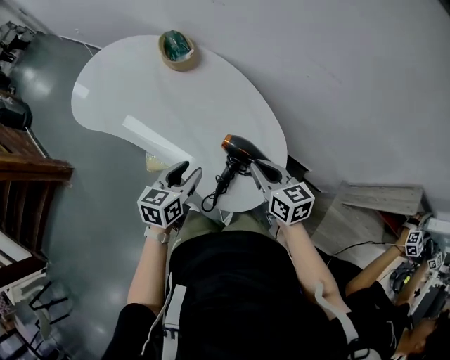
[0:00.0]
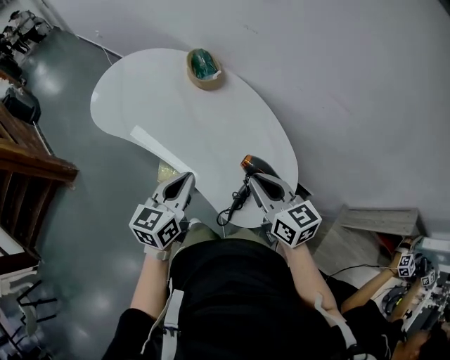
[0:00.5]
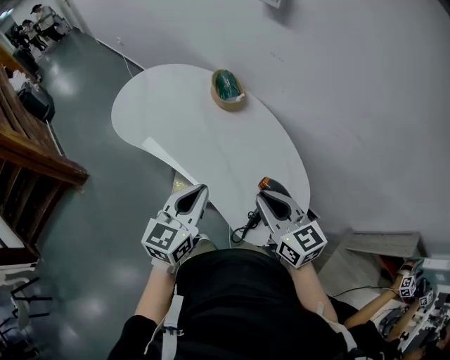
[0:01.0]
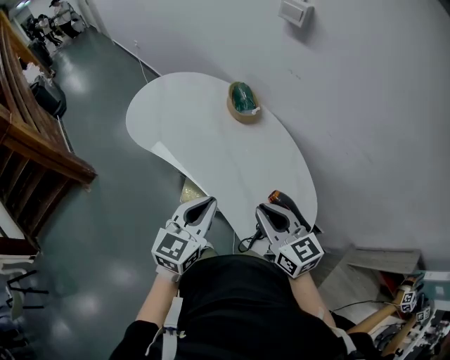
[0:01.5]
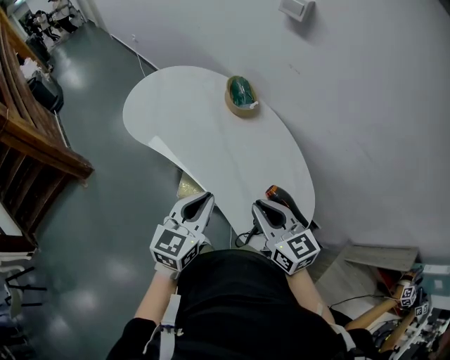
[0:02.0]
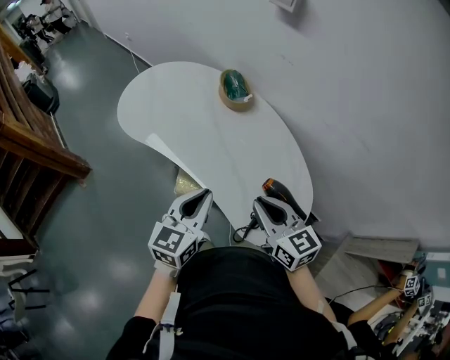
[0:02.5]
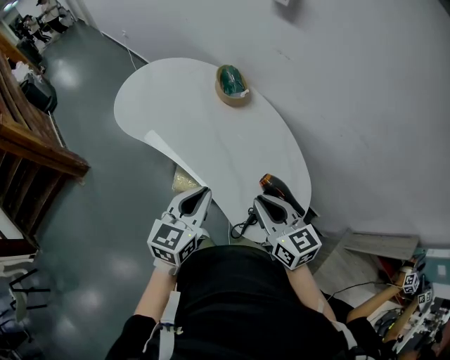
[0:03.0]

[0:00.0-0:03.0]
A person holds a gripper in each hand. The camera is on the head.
0:00.0 to 0:01.5: The right gripper travels to the left and upward by some 25 cm, and rotates approximately 20 degrees. Meanwhile the left gripper is displaced upward and to the left by roughly 20 cm, rotates some 20 degrees, and closes.
0:01.5 to 0:03.0: There are only small adjustments of the grippers.

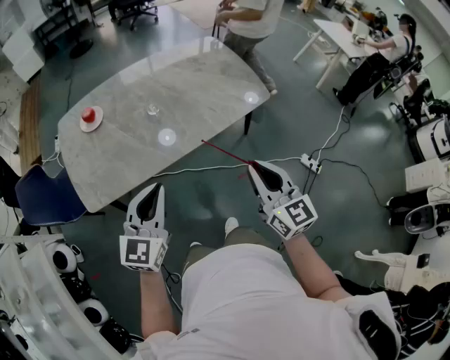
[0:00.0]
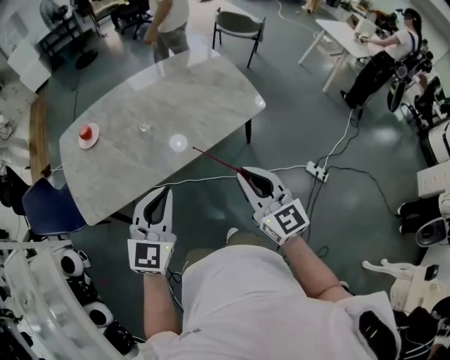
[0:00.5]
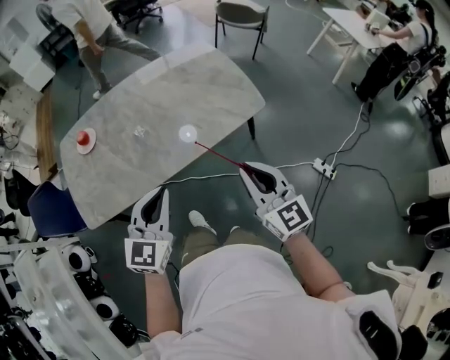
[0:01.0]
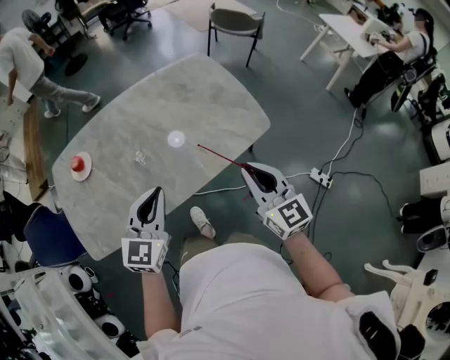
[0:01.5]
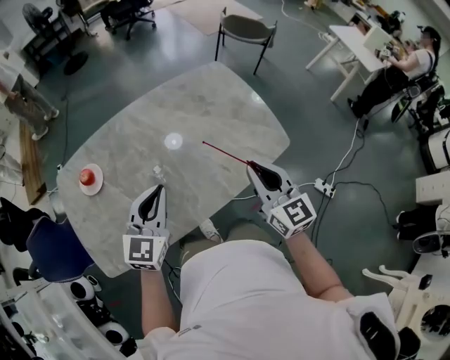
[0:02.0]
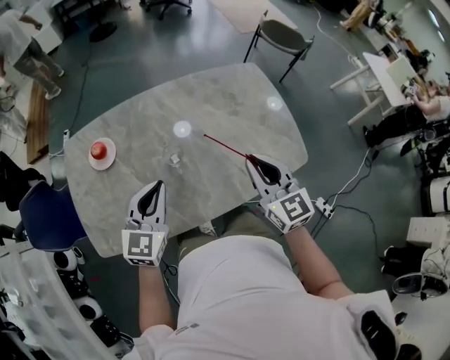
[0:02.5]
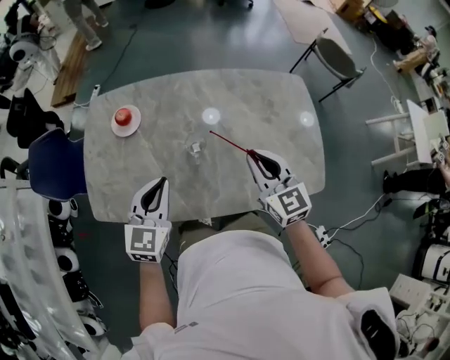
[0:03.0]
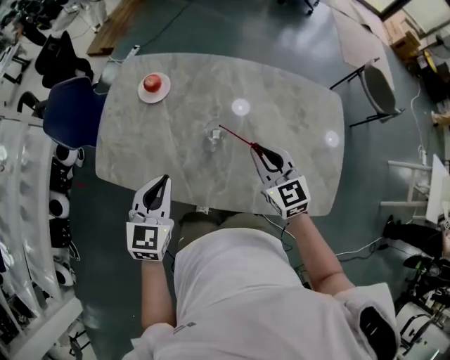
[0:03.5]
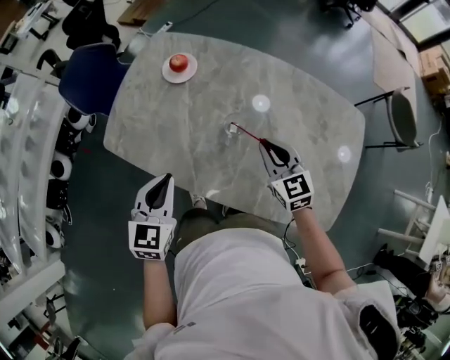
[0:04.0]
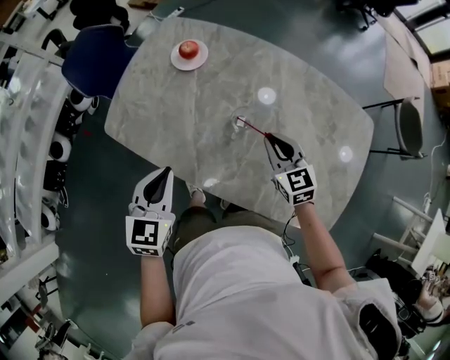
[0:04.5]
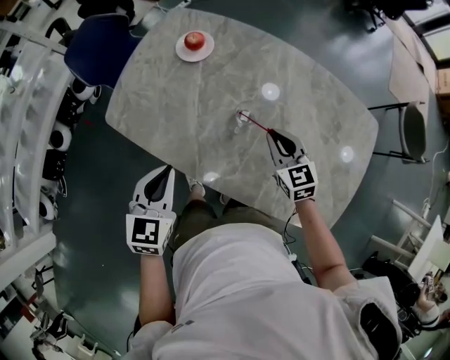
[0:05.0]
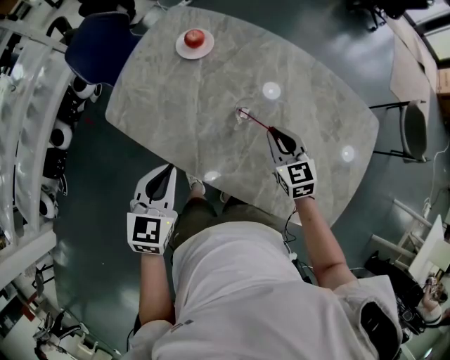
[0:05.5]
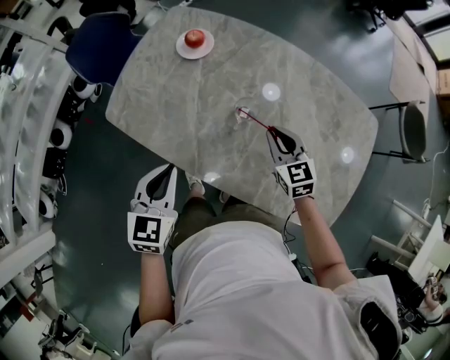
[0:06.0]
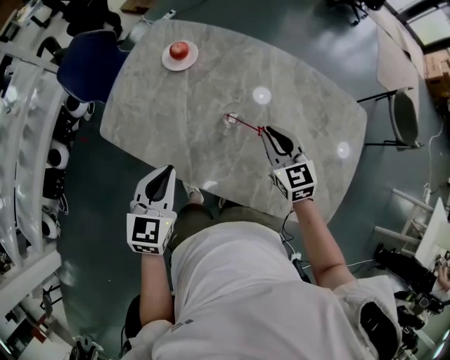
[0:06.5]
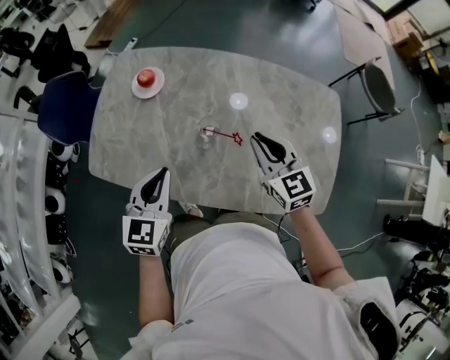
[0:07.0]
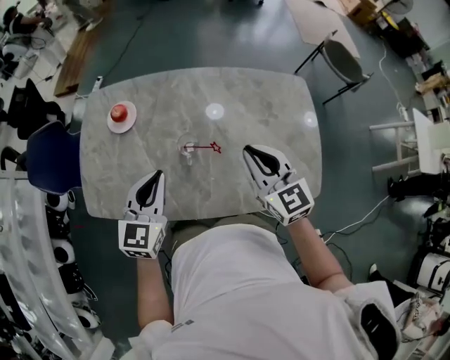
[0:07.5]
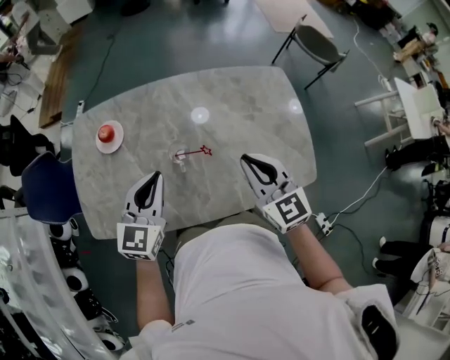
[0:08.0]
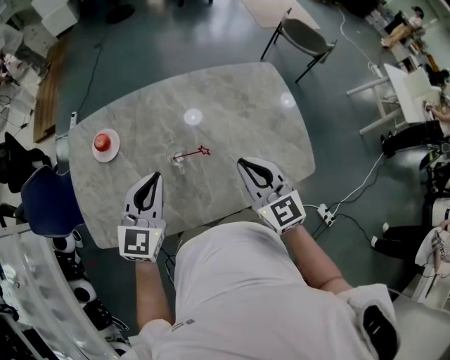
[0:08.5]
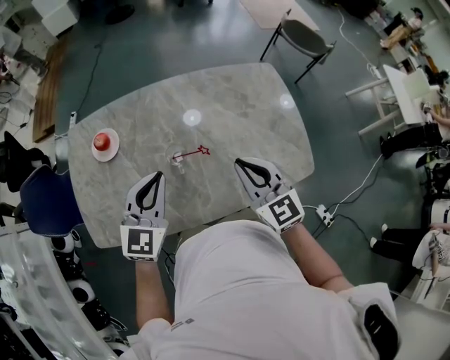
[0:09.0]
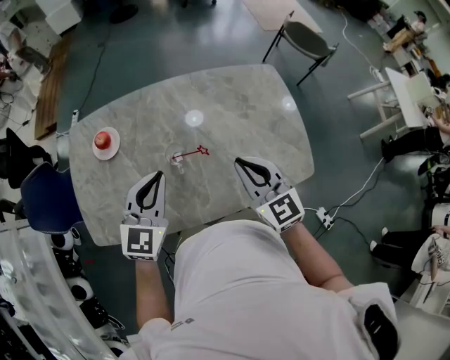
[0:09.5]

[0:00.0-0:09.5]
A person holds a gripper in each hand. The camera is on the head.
0:00.0 to 0:02.0: Both grippers move forward, approximately 30 cm.
0:02.0 to 0:04.0: The right gripper ends up approximately 25 cm from where it was, and changes its angle by about 60 degrees. The left gripper shifts by roughly 15 cm, and rotates roughly 60 degrees.
0:04.0 to 0:05.5: The right gripper moves downward, about 5 cm.
0:05.5 to 0:07.5: The left gripper changes place by approximately 15 cm, and turns by some 30 degrees; the right gripper travels upward by roughly 15 cm, and changes its angle by approximately 30 degrees.
0:07.5 to 0:09.5: There are only small adjustments of the grippers.

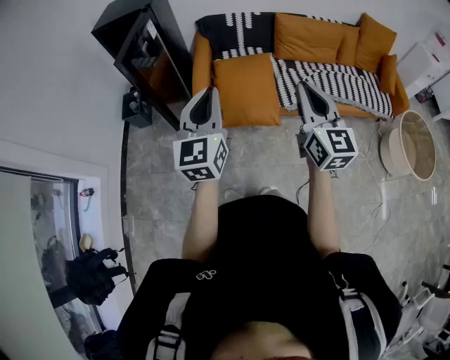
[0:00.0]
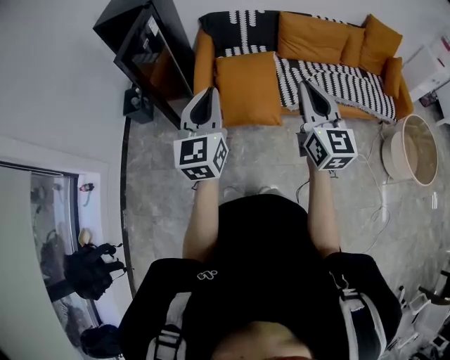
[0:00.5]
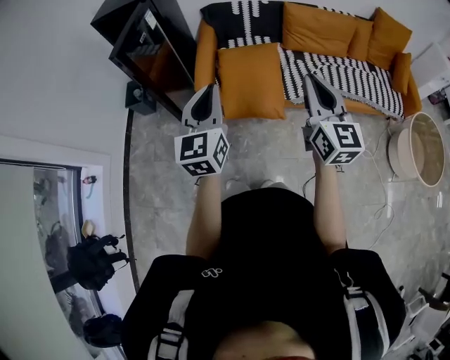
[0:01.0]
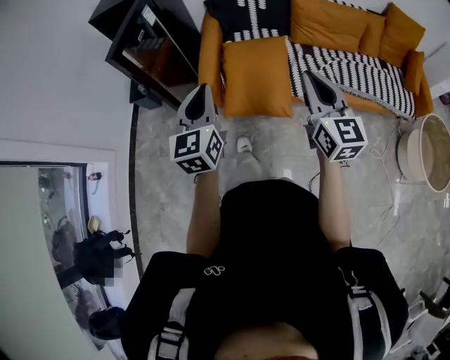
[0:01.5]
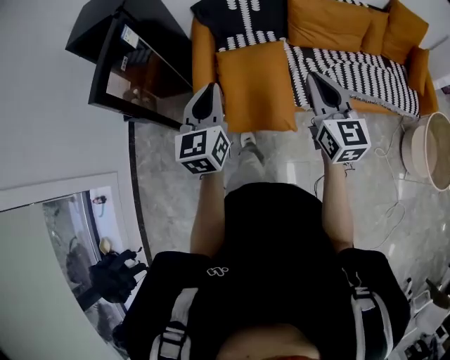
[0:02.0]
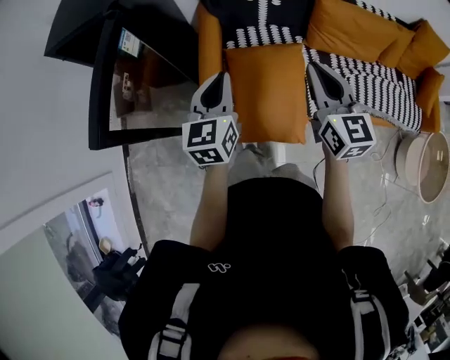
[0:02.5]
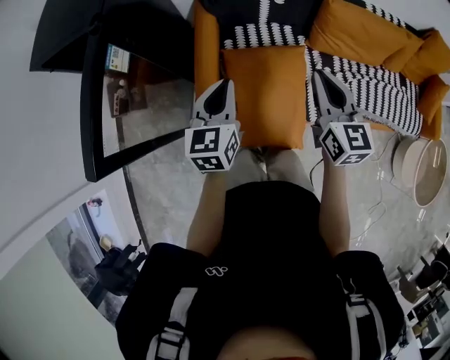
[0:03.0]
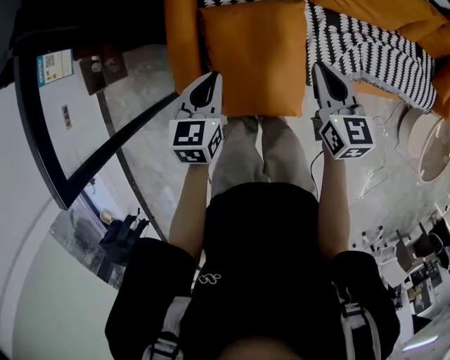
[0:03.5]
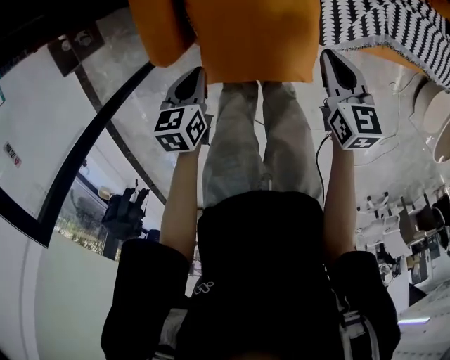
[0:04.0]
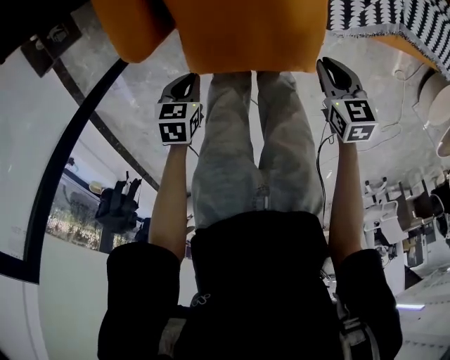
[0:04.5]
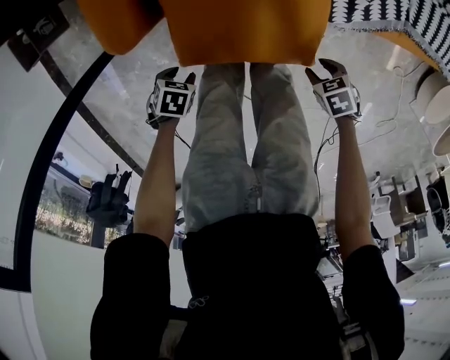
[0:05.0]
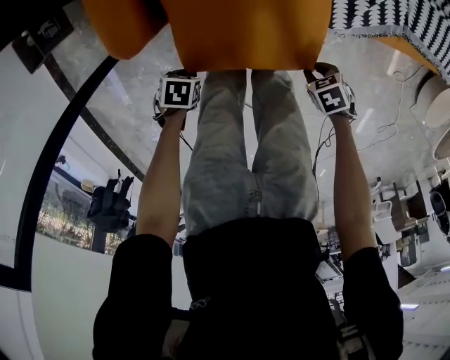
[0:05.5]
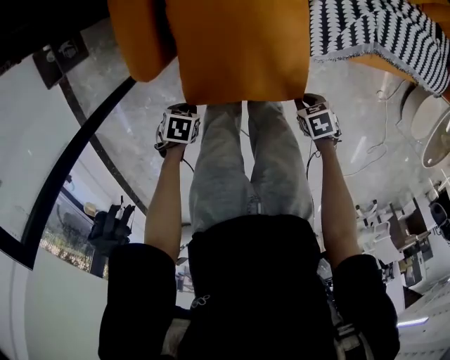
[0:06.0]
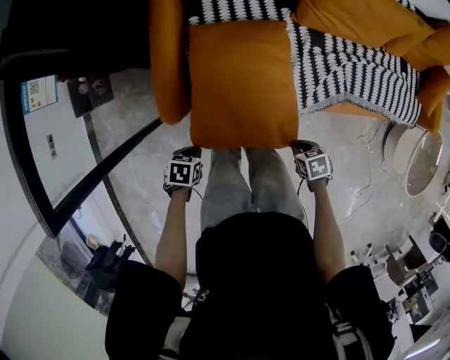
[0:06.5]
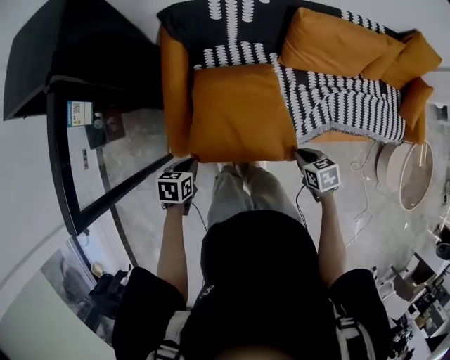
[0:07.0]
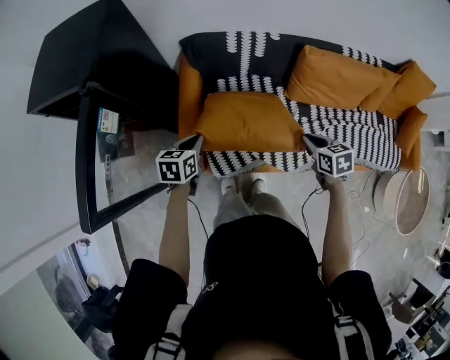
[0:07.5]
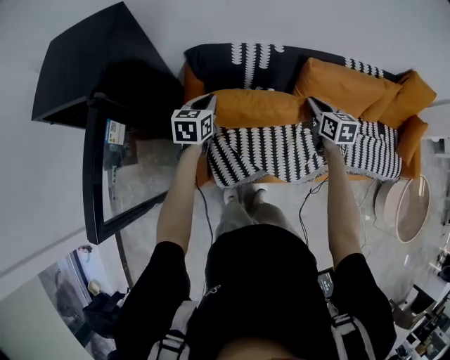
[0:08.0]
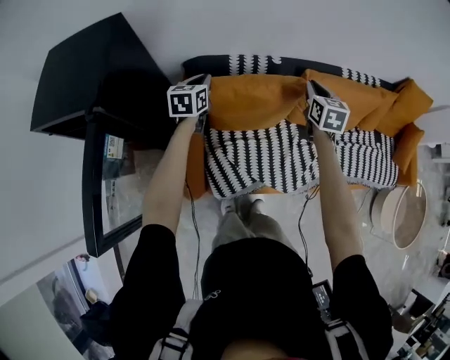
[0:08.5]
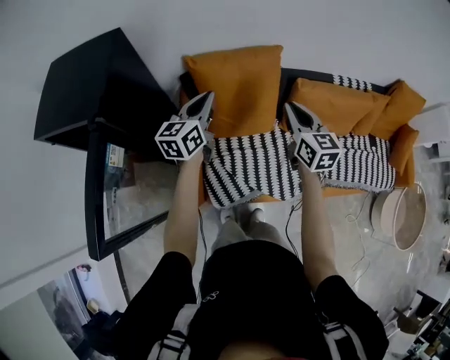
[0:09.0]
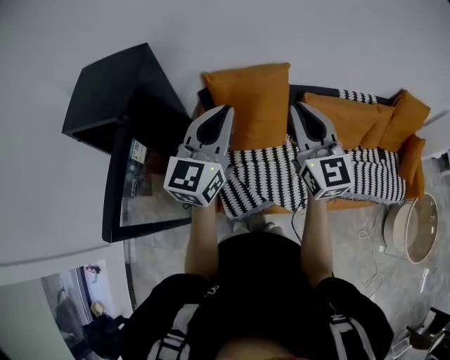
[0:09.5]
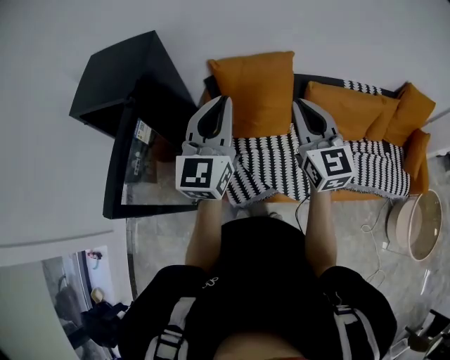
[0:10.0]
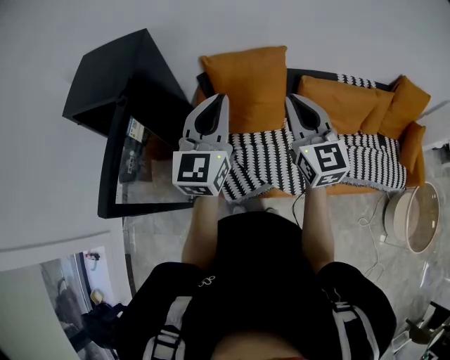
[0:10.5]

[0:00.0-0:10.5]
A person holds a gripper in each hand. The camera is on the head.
0:00.0 to 0:02.0: Both grippers move forward and downward, about 25 cm.
0:02.0 to 0:04.0: The left gripper moves downward, some 40 cm, and tilts its fingers about 50 degrees downward. The right gripper goes about 40 cm downward and forward, and points its fingers about 40 degrees further downward.
0:04.0 to 0:06.5: The right gripper moves about 25 cm downward and comes back, turns by some 40 degrees, and opens and closes again. Meanwhile the left gripper moves some 25 cm downward and comes back, swivels roughly 30 degrees, and opens, then closes once more.
0:06.5 to 0:08.5: The two grippers travel together, about 50 cm. The right gripper points its fingers about 40 degrees further upward; the left gripper angles its fingers upward, by about 40 degrees.
0:08.5 to 0:10.5: The left gripper shifts approximately 40 cm upward and backward, and tilts its fingers approximately 30 degrees upward. Meanwhile the right gripper shifts some 35 cm backward, upward and to the left, and swivels approximately 40 degrees.

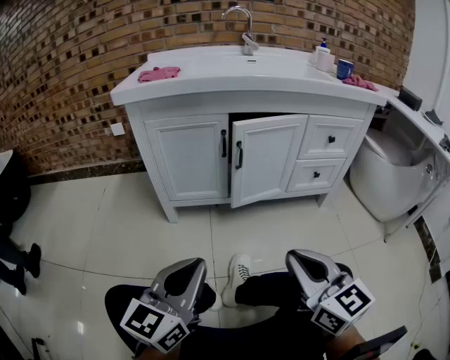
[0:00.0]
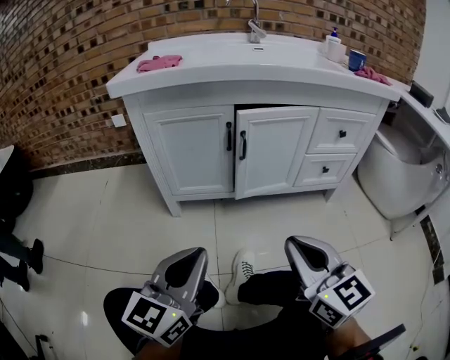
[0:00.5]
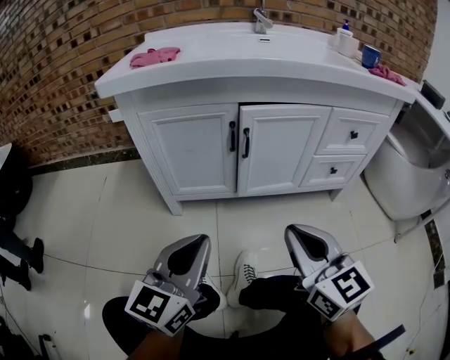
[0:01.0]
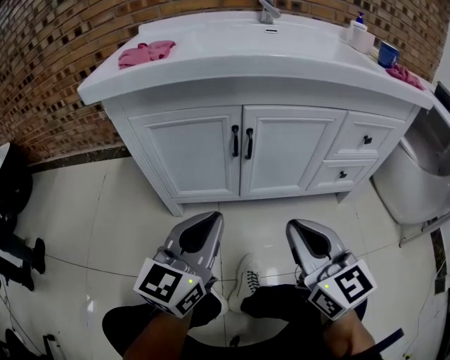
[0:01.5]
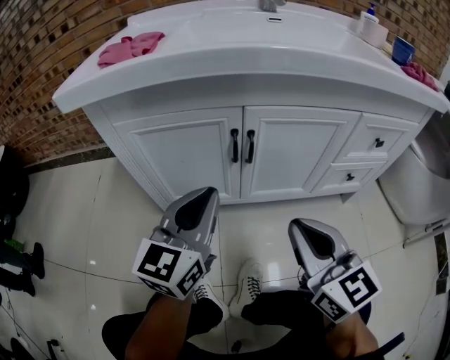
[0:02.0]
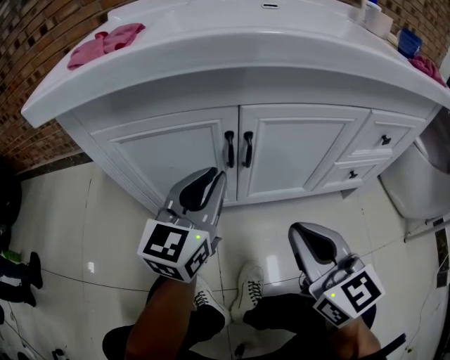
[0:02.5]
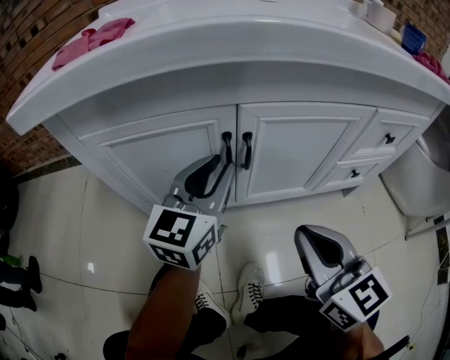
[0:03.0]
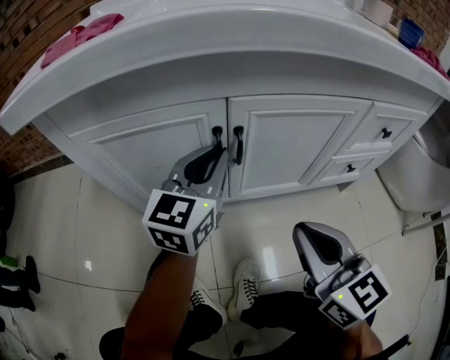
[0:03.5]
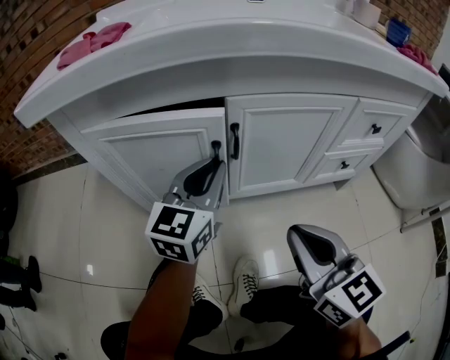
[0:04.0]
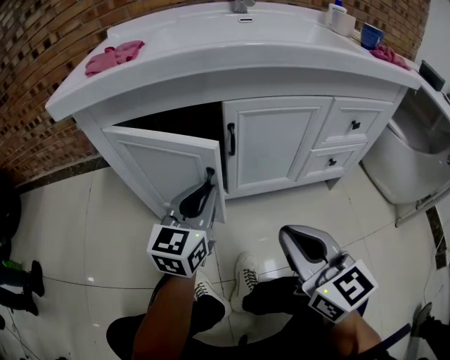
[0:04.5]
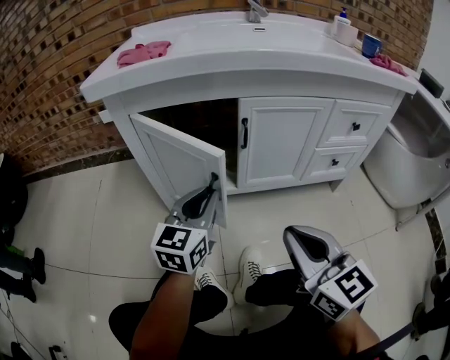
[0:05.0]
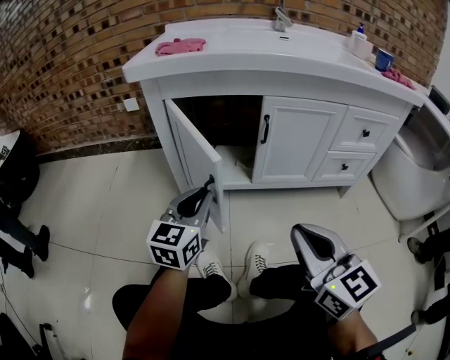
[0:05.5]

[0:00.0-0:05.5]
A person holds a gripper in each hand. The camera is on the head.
0:00.0 to 0:02.0: The two grippers go roughly 25 cm forward.
0:02.0 to 0:03.5: The left gripper goes approximately 15 cm forward. Meanwhile the right gripper shifts by about 5 cm.
0:03.5 to 0:05.5: The right gripper moves backward, roughly 20 cm; the left gripper goes approximately 25 cm backward and to the left.
